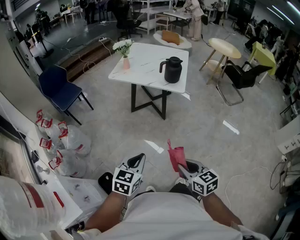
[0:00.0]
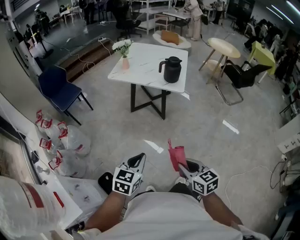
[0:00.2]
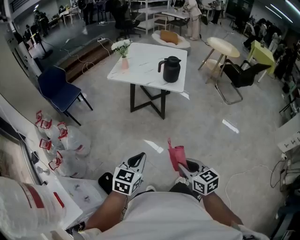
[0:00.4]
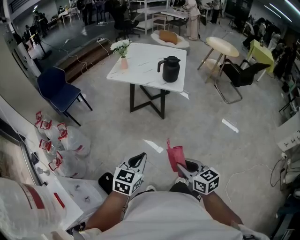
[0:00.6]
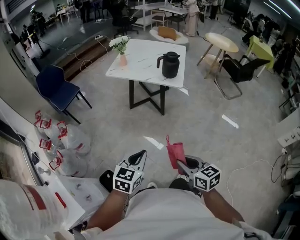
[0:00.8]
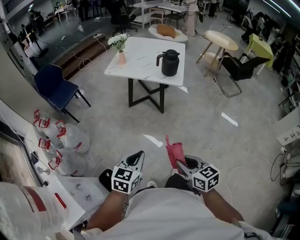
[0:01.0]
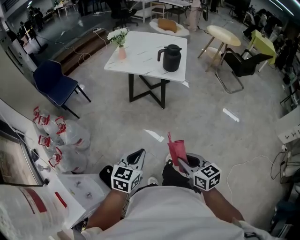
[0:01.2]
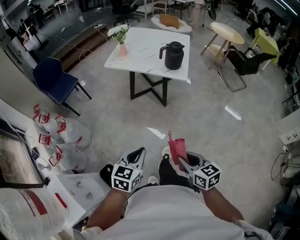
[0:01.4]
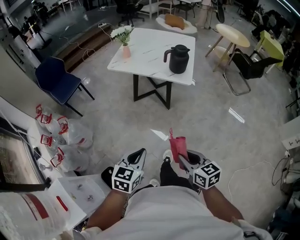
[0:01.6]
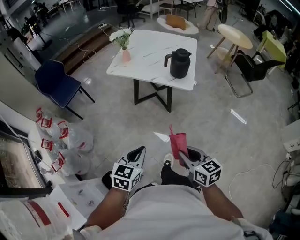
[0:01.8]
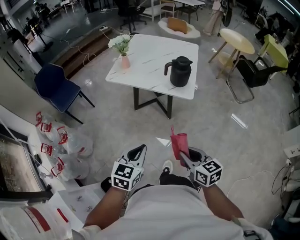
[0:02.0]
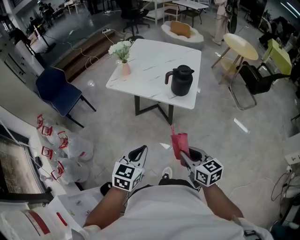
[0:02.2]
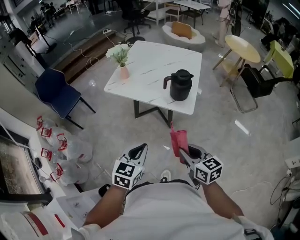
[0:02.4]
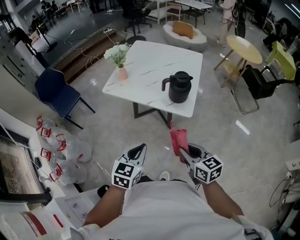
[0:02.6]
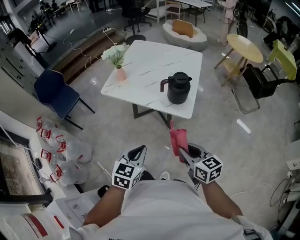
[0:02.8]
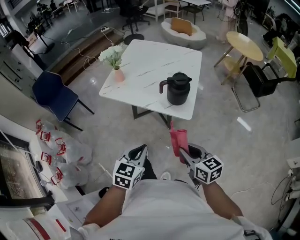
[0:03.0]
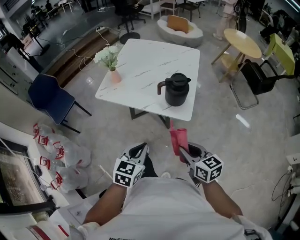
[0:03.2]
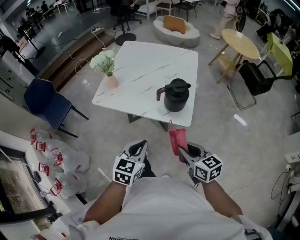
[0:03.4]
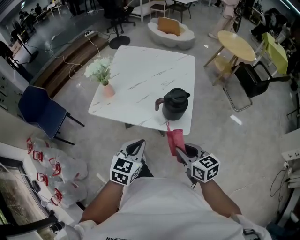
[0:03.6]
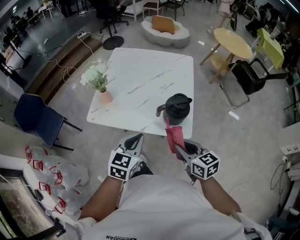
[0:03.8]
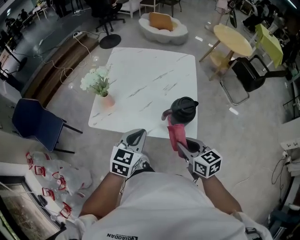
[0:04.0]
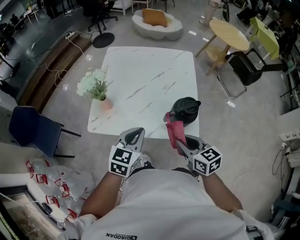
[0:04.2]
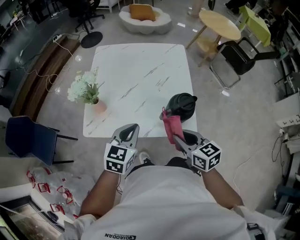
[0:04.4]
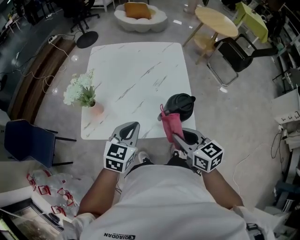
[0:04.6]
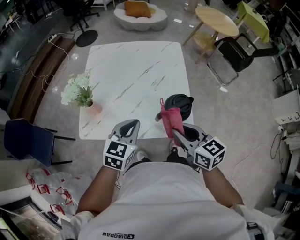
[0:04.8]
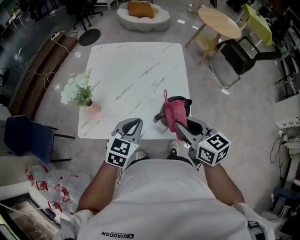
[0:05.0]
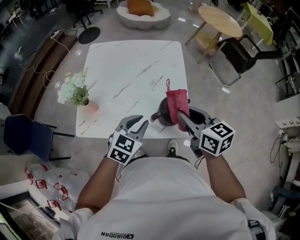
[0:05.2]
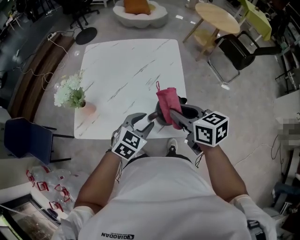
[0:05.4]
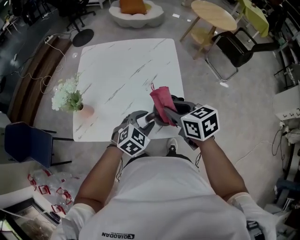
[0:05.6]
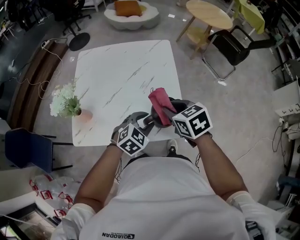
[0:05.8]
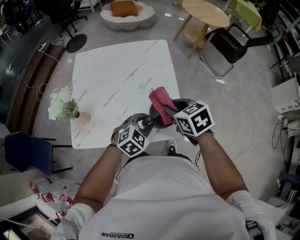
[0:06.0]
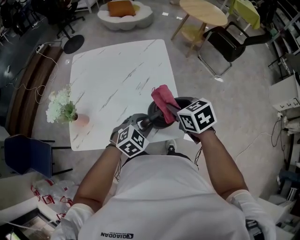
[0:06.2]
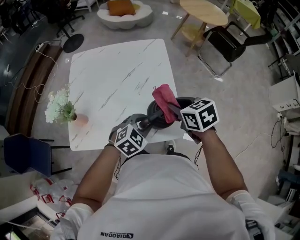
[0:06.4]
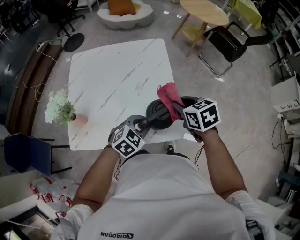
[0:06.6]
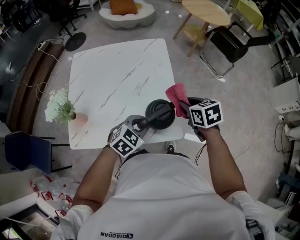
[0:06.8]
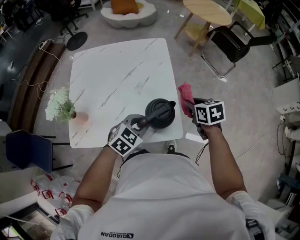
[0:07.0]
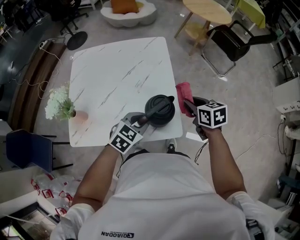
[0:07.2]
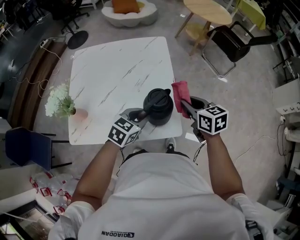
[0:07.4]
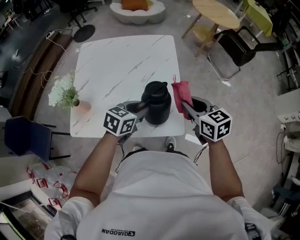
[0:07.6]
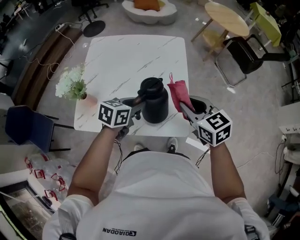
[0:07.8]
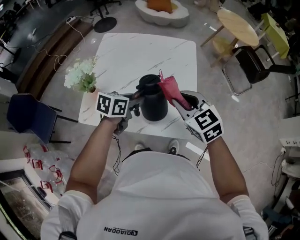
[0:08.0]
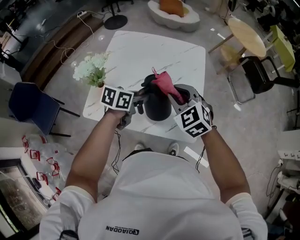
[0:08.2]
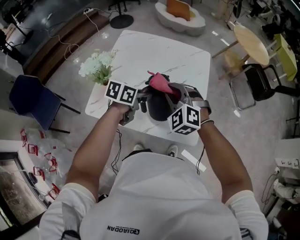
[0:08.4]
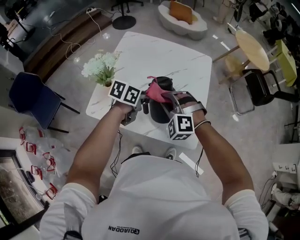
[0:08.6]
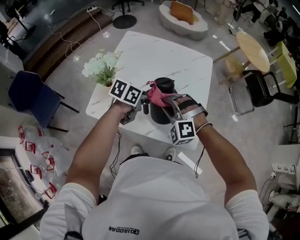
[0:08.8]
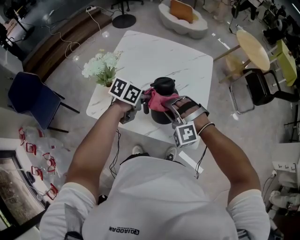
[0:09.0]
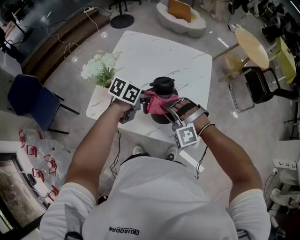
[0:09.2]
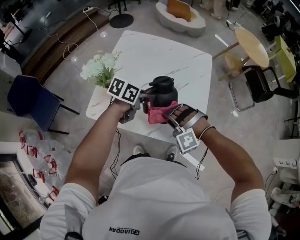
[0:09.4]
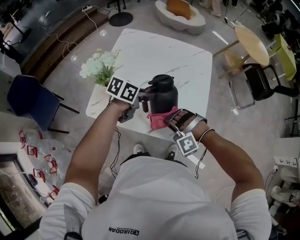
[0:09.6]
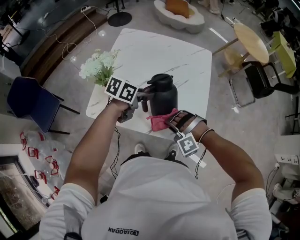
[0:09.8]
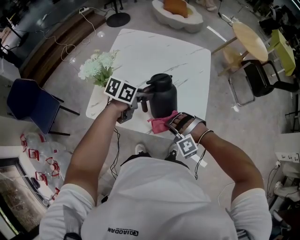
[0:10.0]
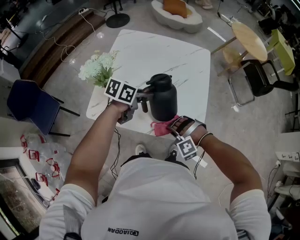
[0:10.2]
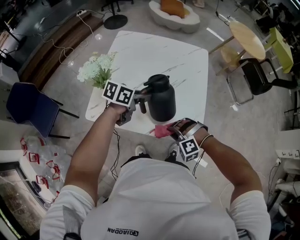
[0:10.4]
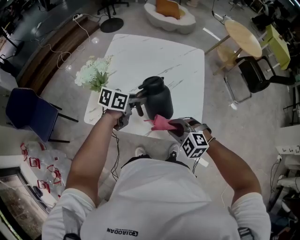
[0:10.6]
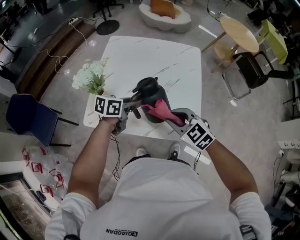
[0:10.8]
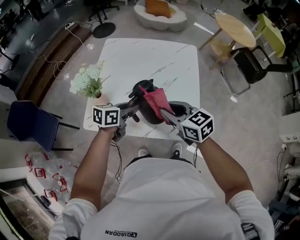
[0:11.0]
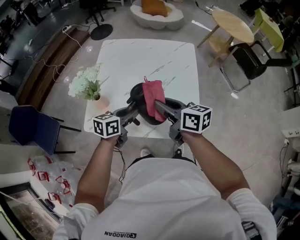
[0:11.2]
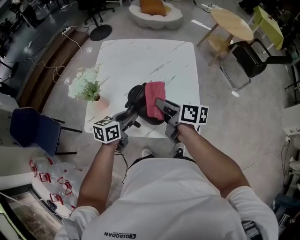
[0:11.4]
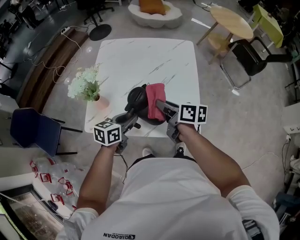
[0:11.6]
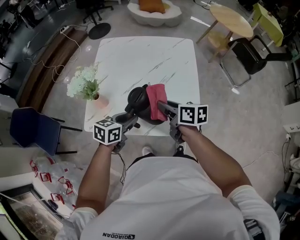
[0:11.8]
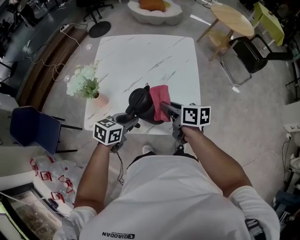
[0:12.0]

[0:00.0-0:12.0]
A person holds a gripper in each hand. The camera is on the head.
0:00.0 to 0:01.6: The two grippers go about 5 cm forward.
0:01.6 to 0:03.0: Both grippers move forward, about 30 cm.
0:03.0 to 0:04.4: Both grippers move forward, roughly 30 cm.
0:04.4 to 0:06.0: The right gripper heads forward and to the right, covering some 15 cm. Meanwhile the left gripper heads to the right and downward, covering roughly 20 cm, changes its angle by approximately 40 degrees, and opens up.
0:06.0 to 0:07.6: The left gripper moves approximately 5 cm, and swivels roughly 40 degrees; the right gripper goes about 10 cm to the right.
0:07.6 to 0:09.0: The right gripper is displaced to the left by about 25 cm, and rotates around the line of its fingers by roughly 100 degrees, counterclockwise from behind. Meanwhile the left gripper goes roughly 15 cm to the left, and swivels roughly 20 degrees.
0:09.0 to 0:10.4: The right gripper is displaced downward, backward and to the right by some 15 cm, and rotates about 20 degrees.
0:10.4 to 0:12.0: The left gripper travels backward by some 10 cm; the right gripper shifts approximately 15 cm upward and forward, and rotates around the line of its fingers by some 120 degrees, clockwise from behind.

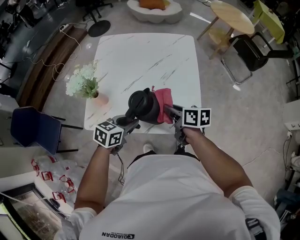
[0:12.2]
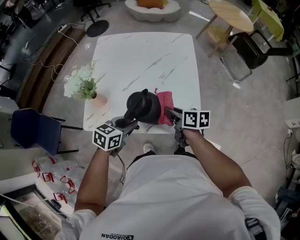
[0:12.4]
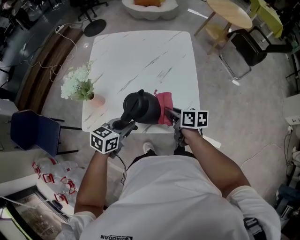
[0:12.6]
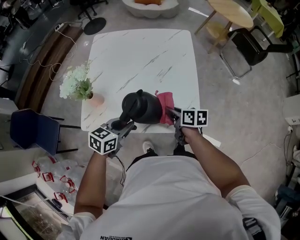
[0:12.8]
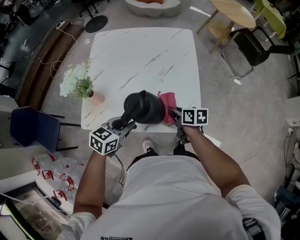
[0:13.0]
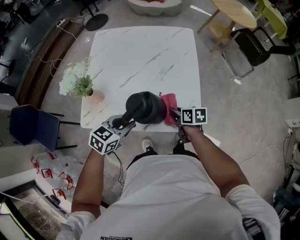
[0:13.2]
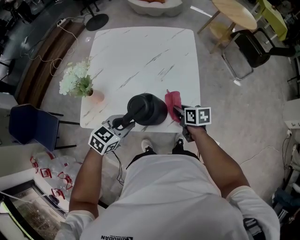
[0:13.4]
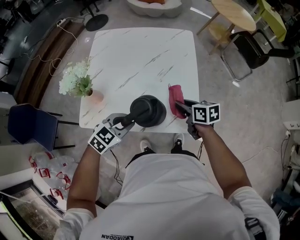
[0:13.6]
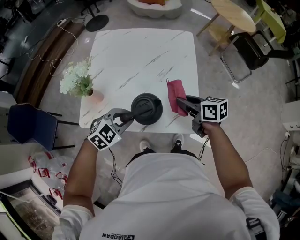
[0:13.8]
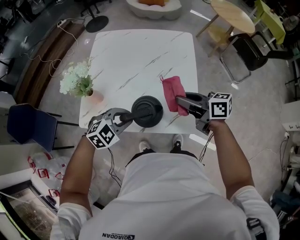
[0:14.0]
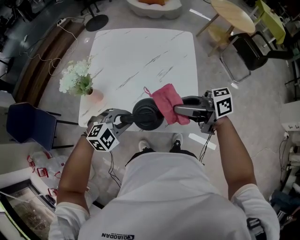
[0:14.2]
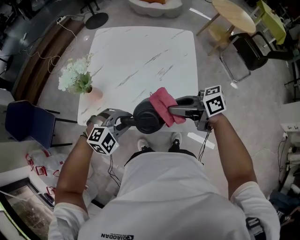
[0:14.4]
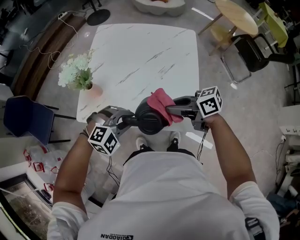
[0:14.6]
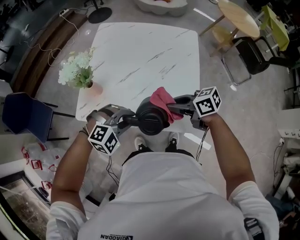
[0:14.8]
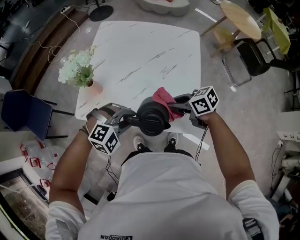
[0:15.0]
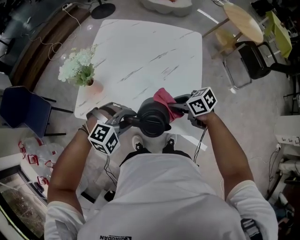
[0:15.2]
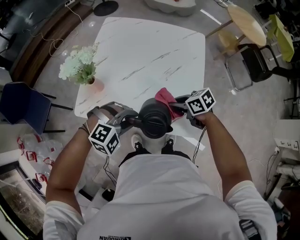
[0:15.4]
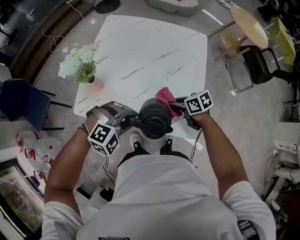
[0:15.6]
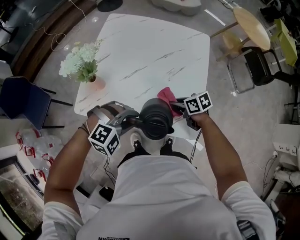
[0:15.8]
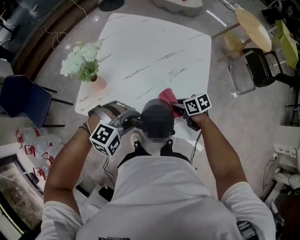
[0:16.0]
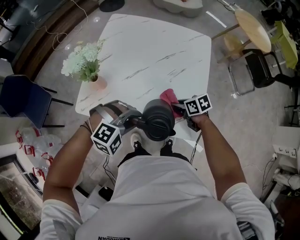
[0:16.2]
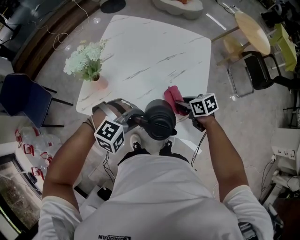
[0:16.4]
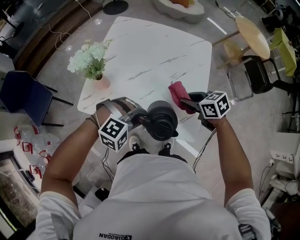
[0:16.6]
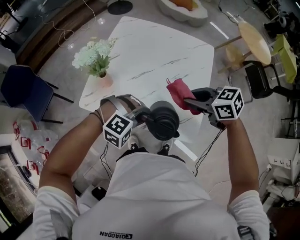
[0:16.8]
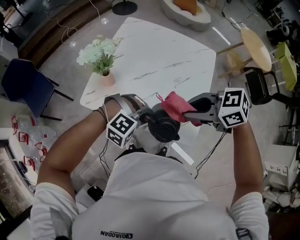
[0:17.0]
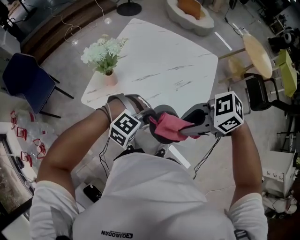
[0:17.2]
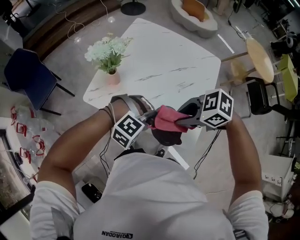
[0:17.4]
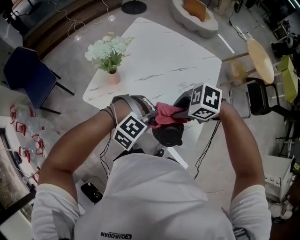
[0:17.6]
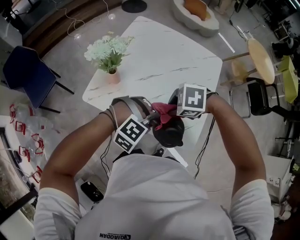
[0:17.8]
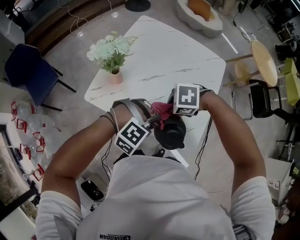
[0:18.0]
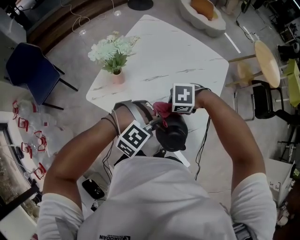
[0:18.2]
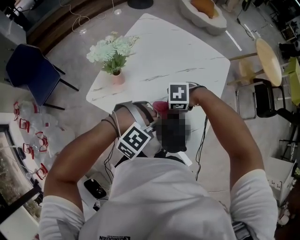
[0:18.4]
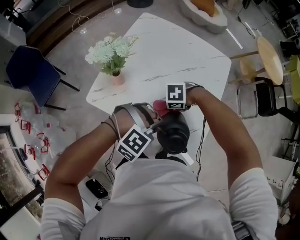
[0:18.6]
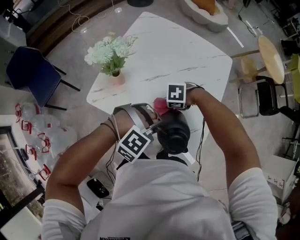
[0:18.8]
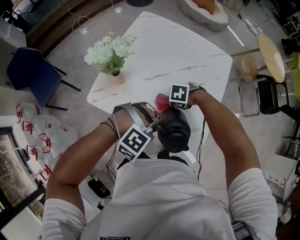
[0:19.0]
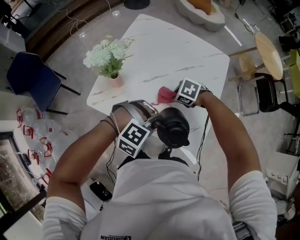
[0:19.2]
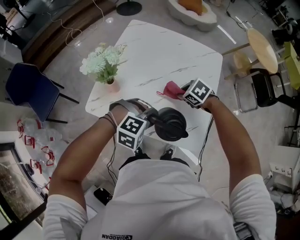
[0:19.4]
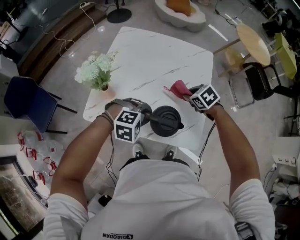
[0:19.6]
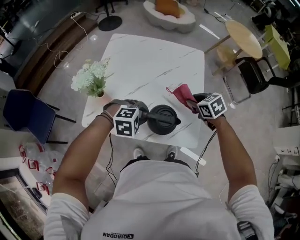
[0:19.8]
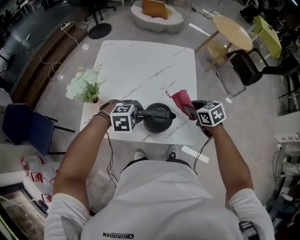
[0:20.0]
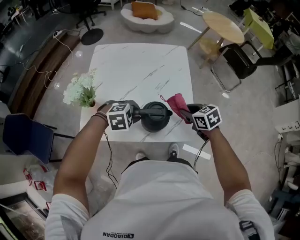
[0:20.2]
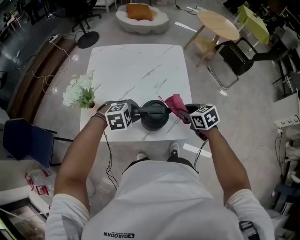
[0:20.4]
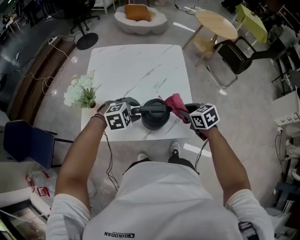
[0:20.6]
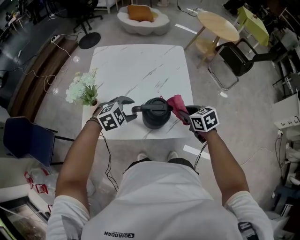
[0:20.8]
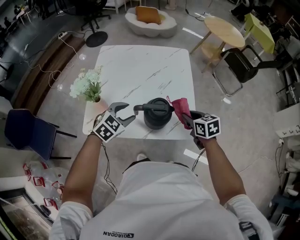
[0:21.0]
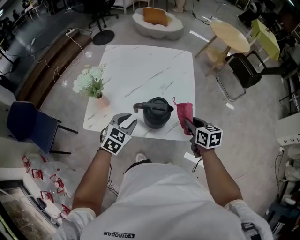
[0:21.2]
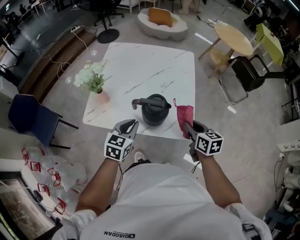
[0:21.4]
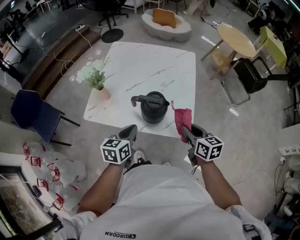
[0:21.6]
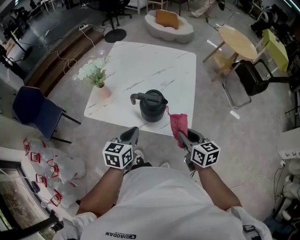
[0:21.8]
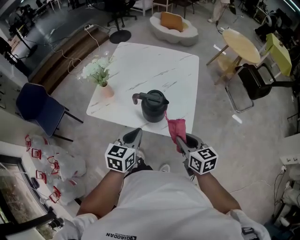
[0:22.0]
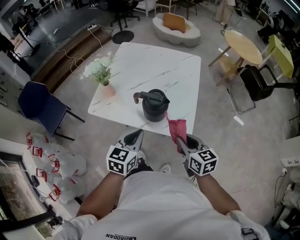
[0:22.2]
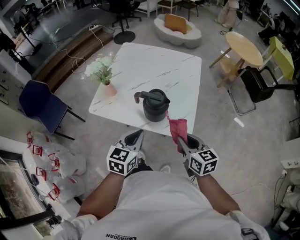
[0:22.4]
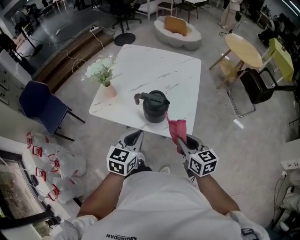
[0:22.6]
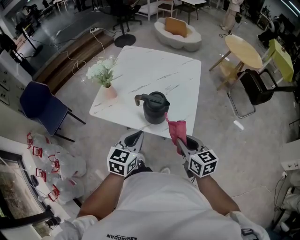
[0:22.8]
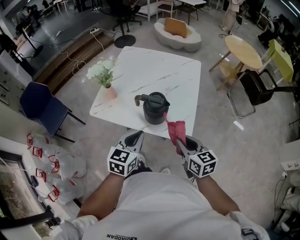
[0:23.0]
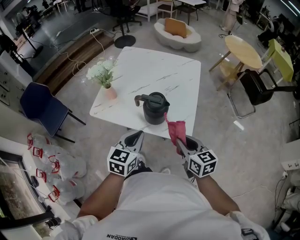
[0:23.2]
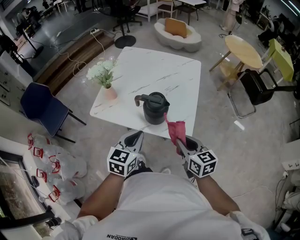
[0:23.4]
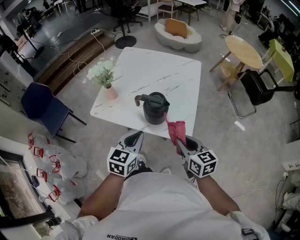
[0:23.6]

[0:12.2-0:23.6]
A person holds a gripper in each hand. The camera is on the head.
0:12.2 to 0:13.6: The left gripper rotates approximately 30 degrees. Meanwhile the right gripper moves to the right, approximately 5 cm, and travels downward and back again, some 10 cm each way.
0:13.6 to 0:15.0: The right gripper goes upward and returns, roughly 15 cm each way, and turns by roughly 40 degrees. The left gripper twists roughly 40 degrees clockwise, seen from behind.
0:15.0 to 0:16.4: The right gripper moves downward, about 5 cm.
0:16.4 to 0:17.8: The right gripper rolls counterclockwise, seen from behind, by roughly 60 degrees.
0:17.8 to 0:19.4: The right gripper changes place by some 15 cm, and rotates roughly 40 degrees.
0:19.4 to 0:20.8: The right gripper moves about 20 cm, and swivels roughly 50 degrees. Meanwhile the left gripper opens up.
0:20.8 to 0:22.2: The right gripper shifts about 15 cm backward, and swivels some 20 degrees; the left gripper goes some 20 cm backward and upward, rotates approximately 70 degrees, and closes.
0:22.2 to 0:23.6: Both grippers stay put.
